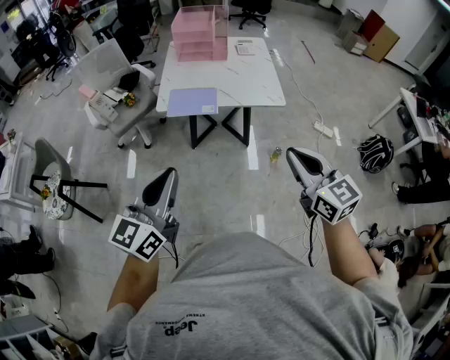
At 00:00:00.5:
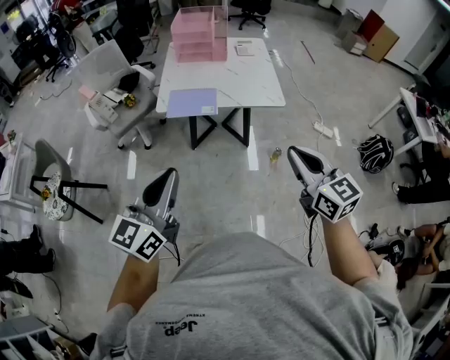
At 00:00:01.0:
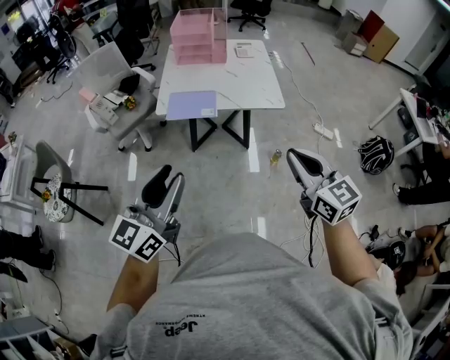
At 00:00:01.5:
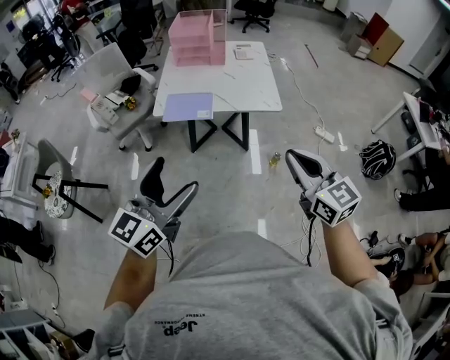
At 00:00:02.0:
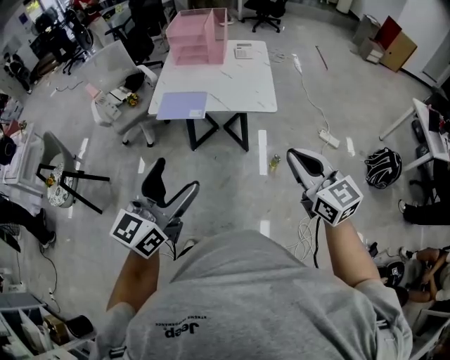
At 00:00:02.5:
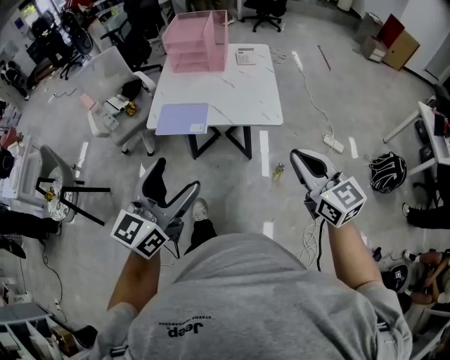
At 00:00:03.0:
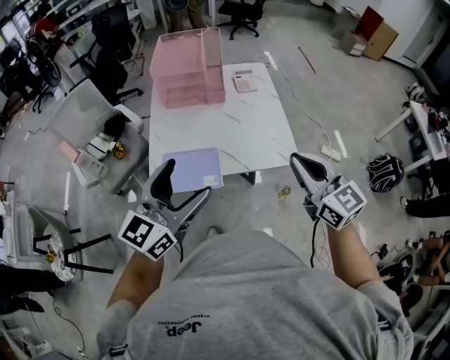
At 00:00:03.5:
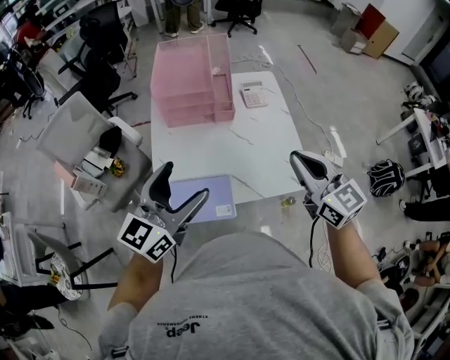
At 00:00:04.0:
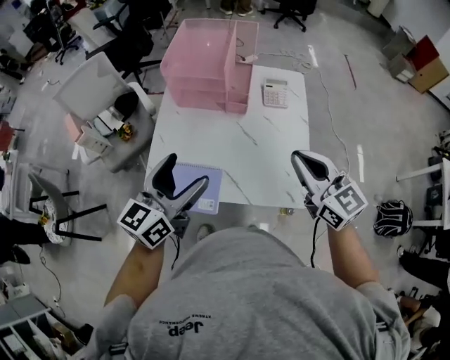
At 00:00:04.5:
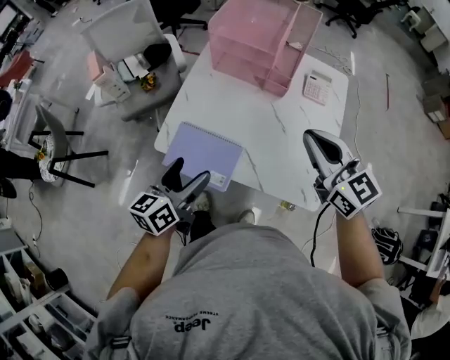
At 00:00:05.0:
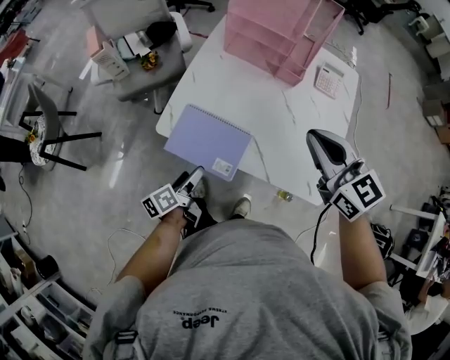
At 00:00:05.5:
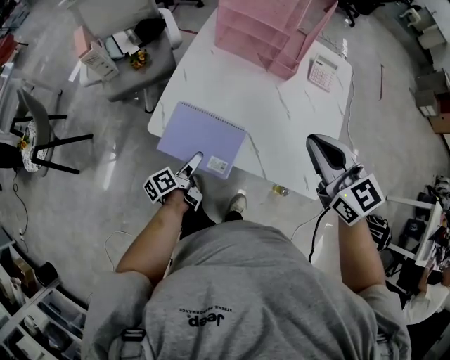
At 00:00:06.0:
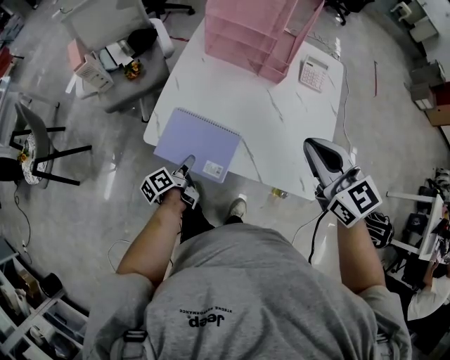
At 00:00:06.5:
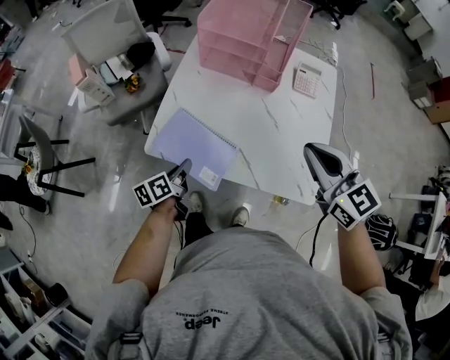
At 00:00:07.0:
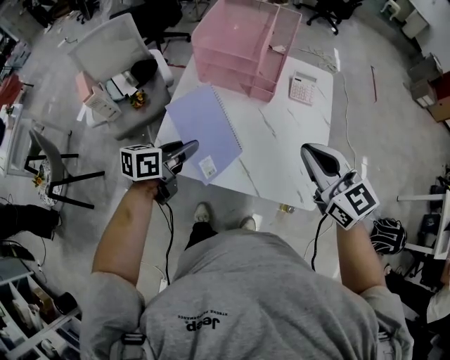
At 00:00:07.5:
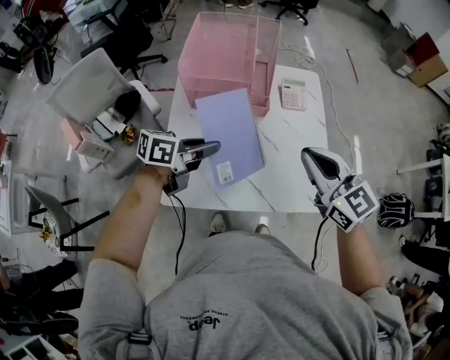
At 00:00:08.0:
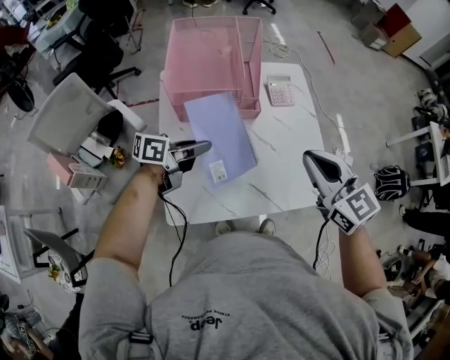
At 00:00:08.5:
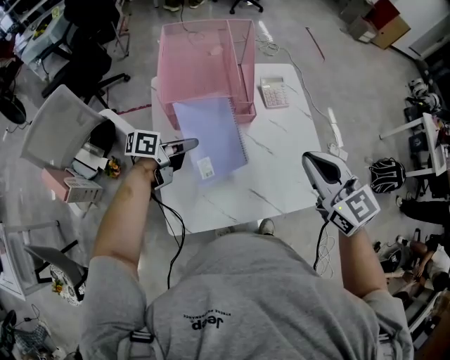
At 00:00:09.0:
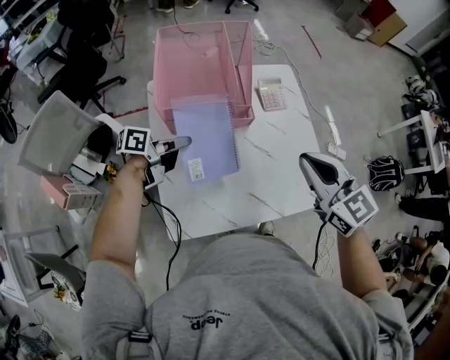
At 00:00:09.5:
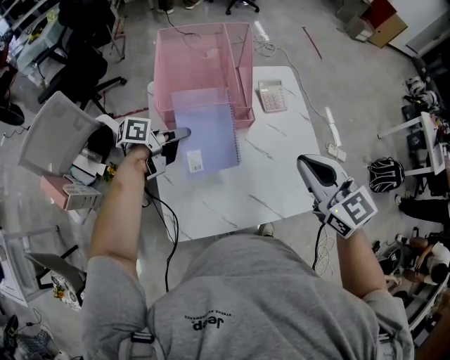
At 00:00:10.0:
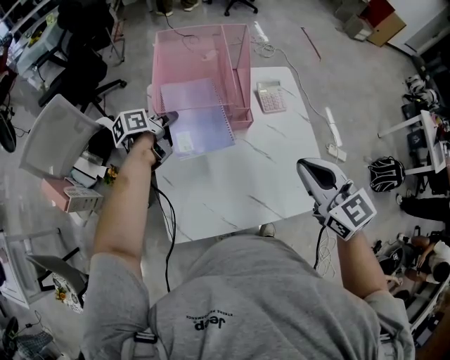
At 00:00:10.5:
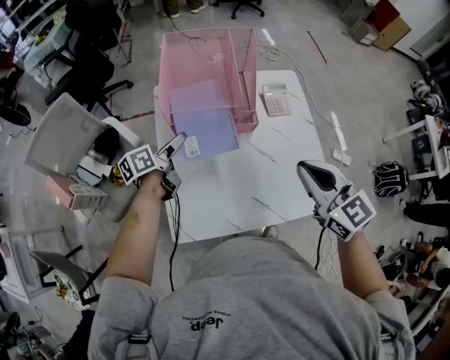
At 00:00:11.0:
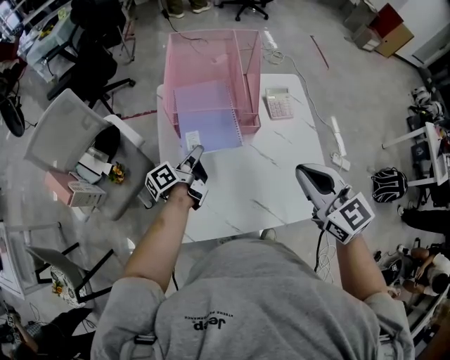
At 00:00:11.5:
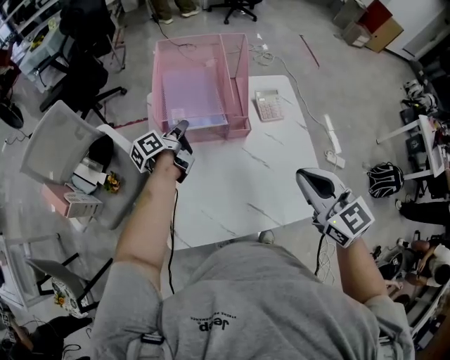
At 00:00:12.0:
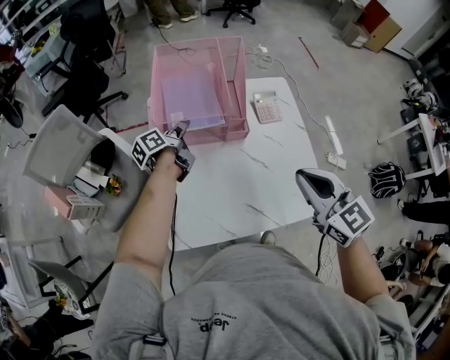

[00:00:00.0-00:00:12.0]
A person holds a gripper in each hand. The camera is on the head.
00:00:00.0 to 00:00:02.0: Both grippers move to the right, about 15 cm. The left gripper opens up.
00:00:02.0 to 00:00:04.0: The two grippers travel together, forward, approximately 50 cm.
00:00:04.0 to 00:00:06.0: The right gripper goes roughly 10 cm to the left and downward. The left gripper moves downward, about 35 cm, rolls counterclockwise, seen from behind, by some 70 degrees, and closes up.
00:00:06.0 to 00:00:08.0: The left gripper ends up some 35 cm from where it was, and turns by some 80 degrees, while the right gripper changes place by about 10 cm, and swivels approximately 20 degrees.
00:00:08.0 to 00:00:10.0: The left gripper moves forward and to the left, about 20 cm, and turns by about 40 degrees.
00:00:10.0 to 00:00:12.0: The left gripper moves roughly 10 cm backward and comes back, and opens, then closes again.

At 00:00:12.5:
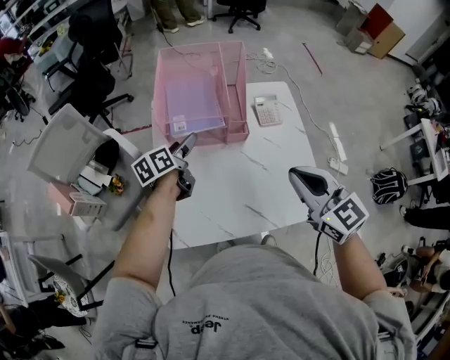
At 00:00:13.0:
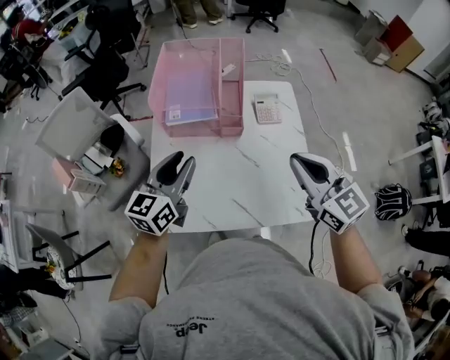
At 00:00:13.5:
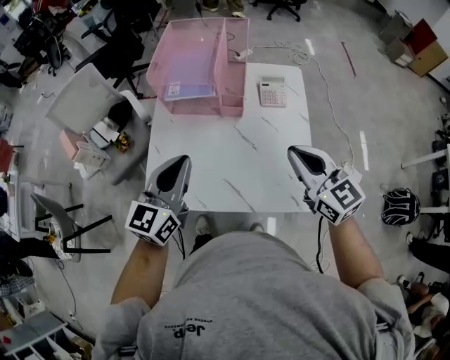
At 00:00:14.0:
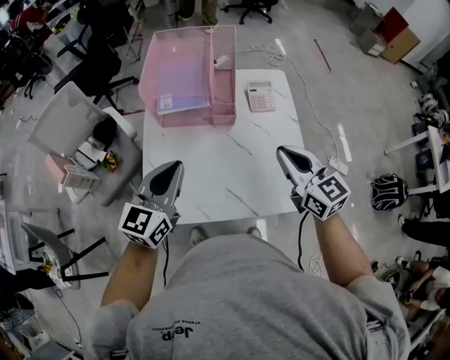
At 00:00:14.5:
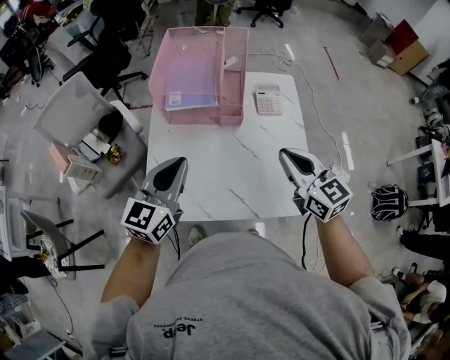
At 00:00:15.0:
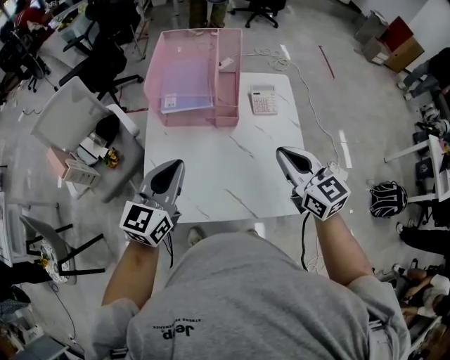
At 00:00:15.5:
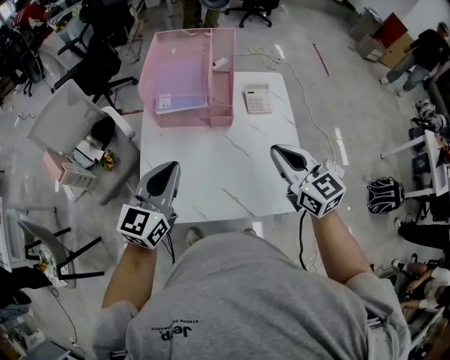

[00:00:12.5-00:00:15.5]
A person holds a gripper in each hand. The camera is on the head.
00:00:12.5 to 00:00:14.0: The right gripper is displaced to the right and downward by about 10 cm. The left gripper moves backward and upward, about 25 cm, rolls clockwise, seen from behind, by approximately 50 degrees, and closes its fingers.
00:00:14.0 to 00:00:15.5: Both grippers stay about where they are.

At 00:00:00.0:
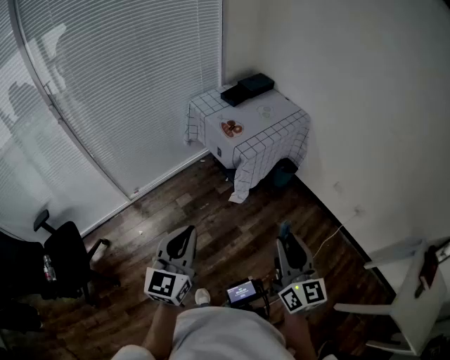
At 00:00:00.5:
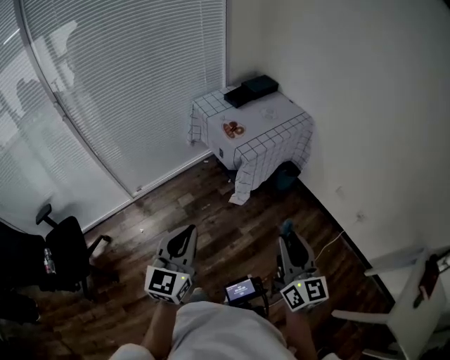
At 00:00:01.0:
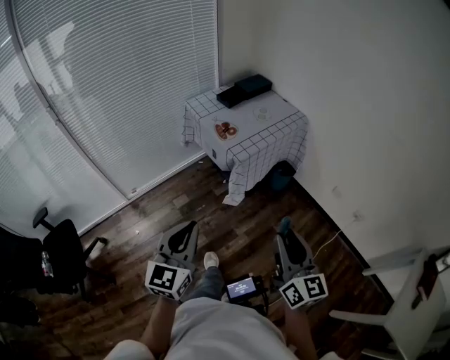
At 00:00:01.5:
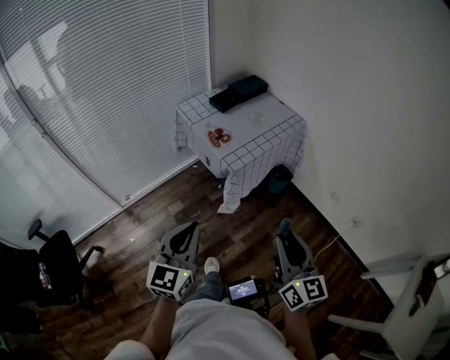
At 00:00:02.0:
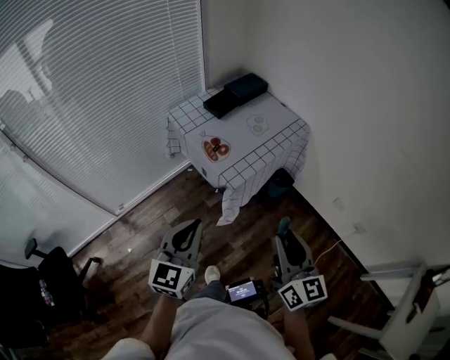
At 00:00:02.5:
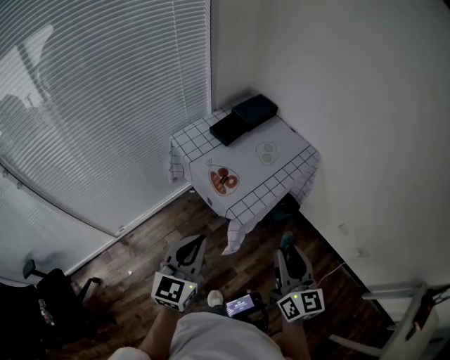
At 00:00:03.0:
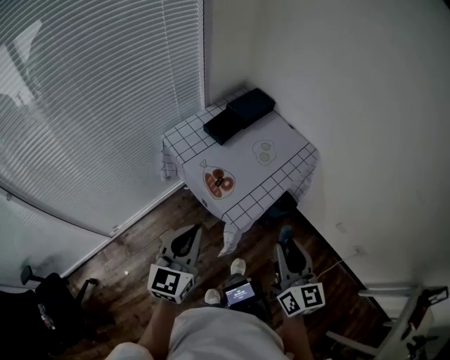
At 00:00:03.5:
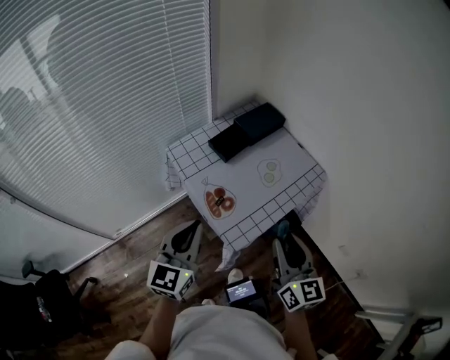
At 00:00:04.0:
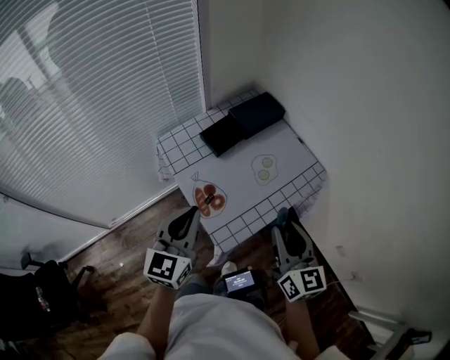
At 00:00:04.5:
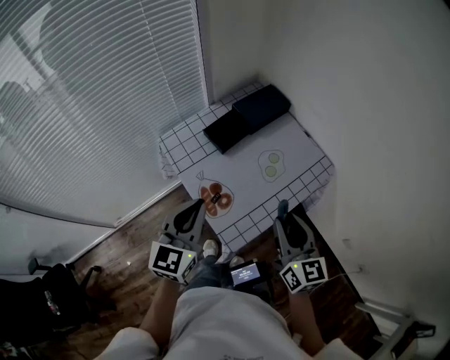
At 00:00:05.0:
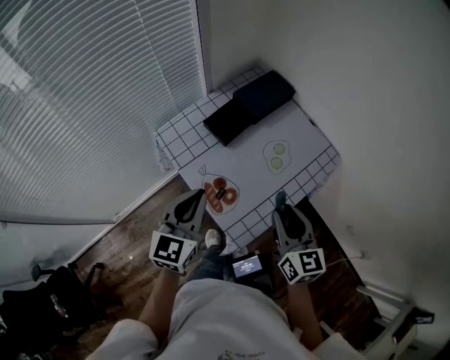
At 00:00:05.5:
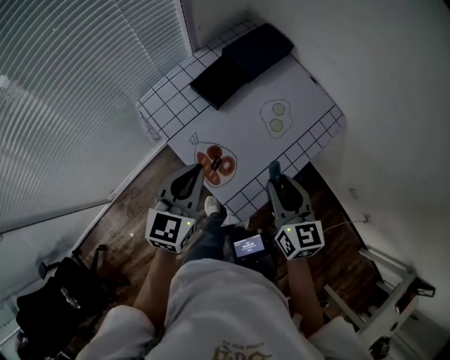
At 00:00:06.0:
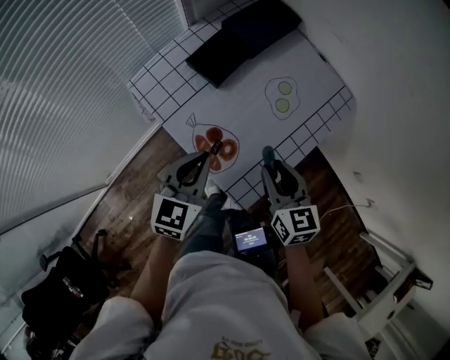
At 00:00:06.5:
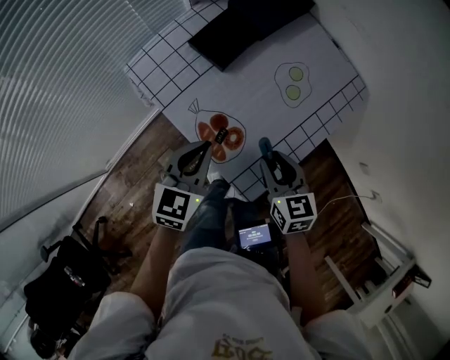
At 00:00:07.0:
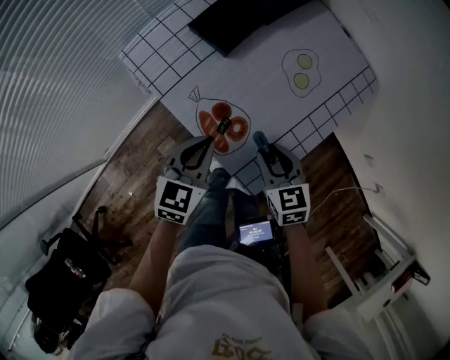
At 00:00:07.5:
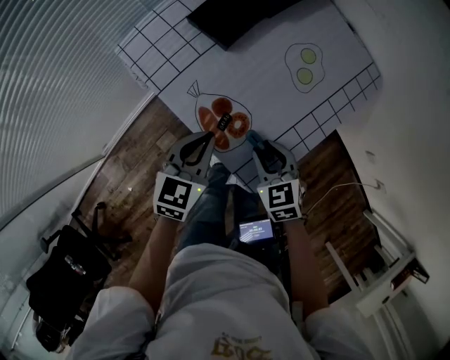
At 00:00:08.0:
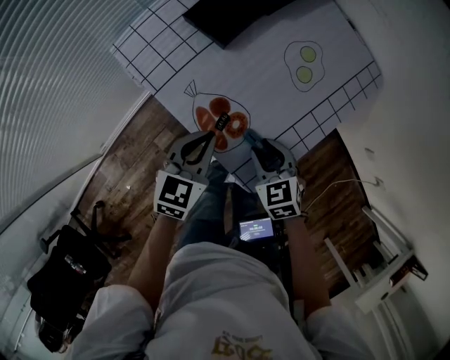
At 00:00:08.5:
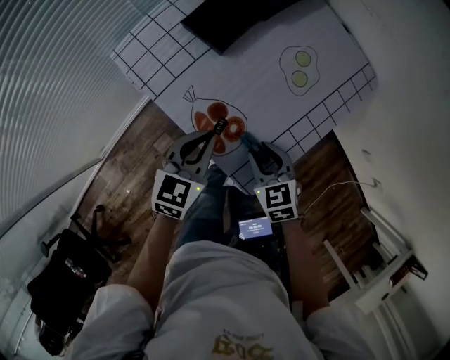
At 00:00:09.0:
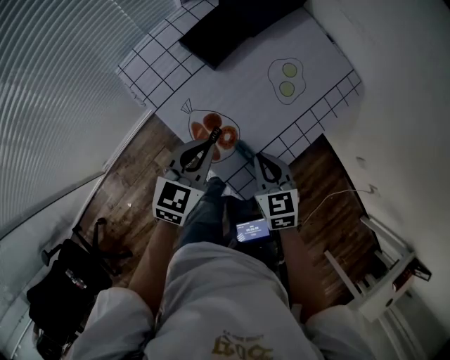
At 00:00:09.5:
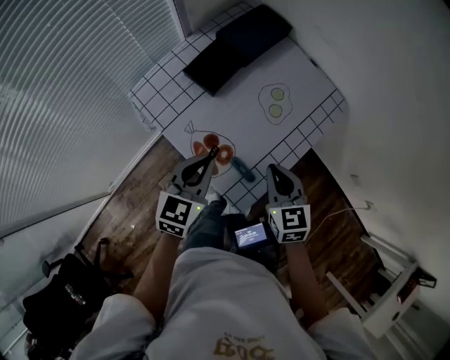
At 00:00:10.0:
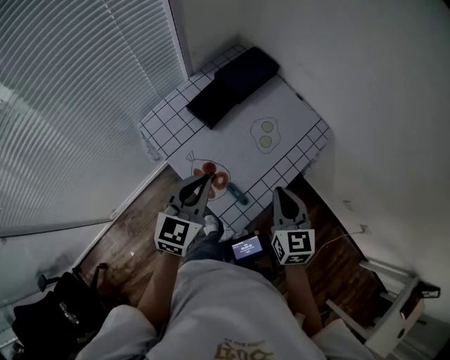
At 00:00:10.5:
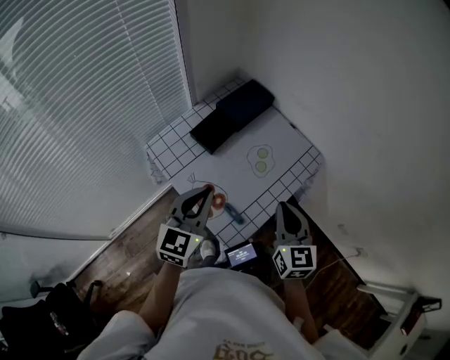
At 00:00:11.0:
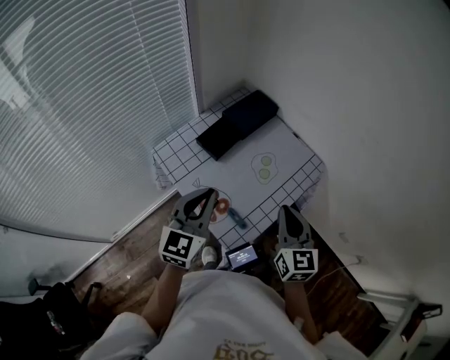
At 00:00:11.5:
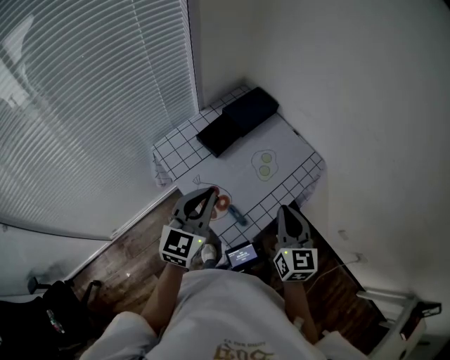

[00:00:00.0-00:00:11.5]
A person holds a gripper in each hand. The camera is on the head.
00:00:00.0 to 00:00:02.0: Both grippers travel together forward, about 25 cm.
00:00:02.0 to 00:00:04.0: Both grippers move forward, about 35 cm.
00:00:04.0 to 00:00:06.0: The right gripper is displaced downward and to the left by about 20 cm, and swivels about 20 degrees. Meanwhile the left gripper shifts about 15 cm downward and forward, and rotates roughly 20 degrees.
00:00:06.0 to 00:00:07.5: The grippers both shift downward by about 10 cm. The right gripper rotates roughly 30 degrees.
00:00:07.5 to 00:00:09.5: The right gripper shifts roughly 15 cm upward and to the right, swivels some 20 degrees, and closes up. The left gripper shifts approximately 10 cm upward.
00:00:09.5 to 00:00:11.5: The two grippers go some 15 cm upward. The right gripper rotates about 20 degrees.
